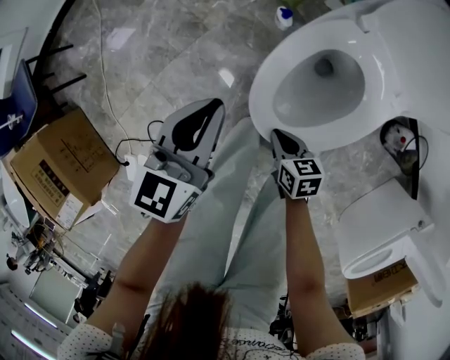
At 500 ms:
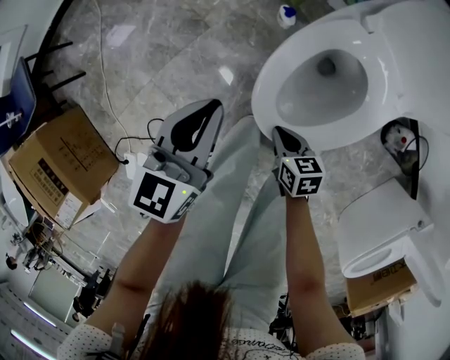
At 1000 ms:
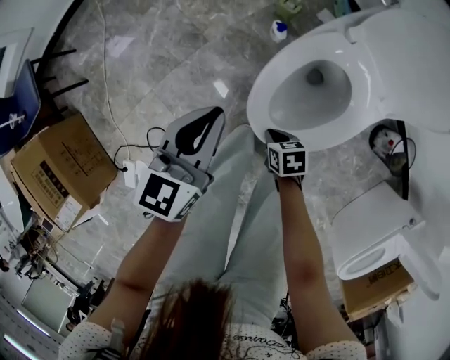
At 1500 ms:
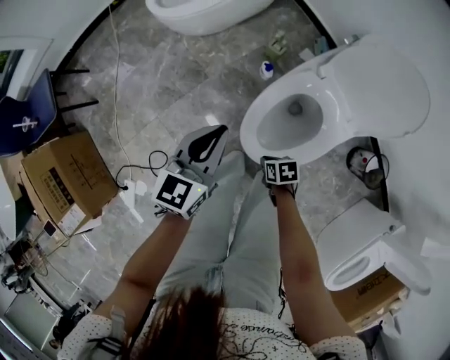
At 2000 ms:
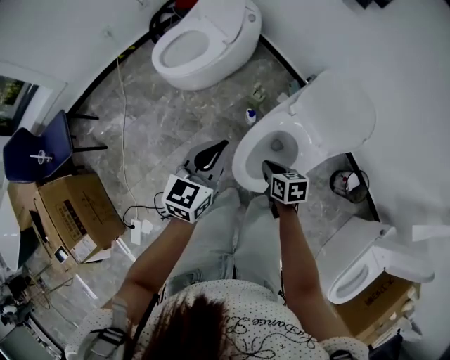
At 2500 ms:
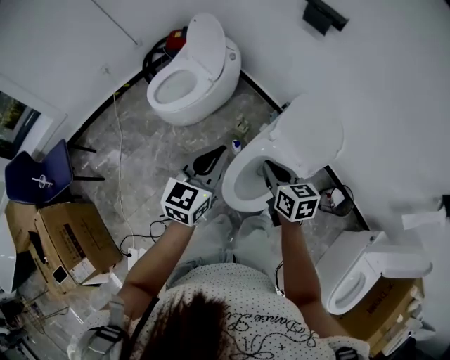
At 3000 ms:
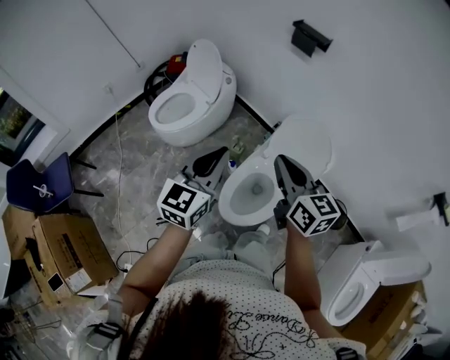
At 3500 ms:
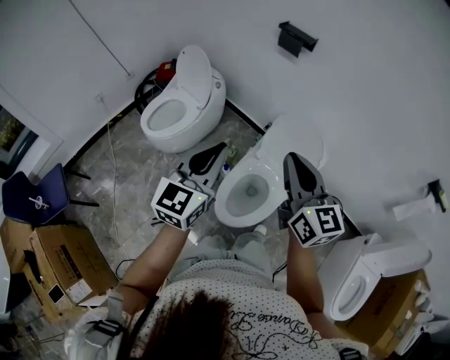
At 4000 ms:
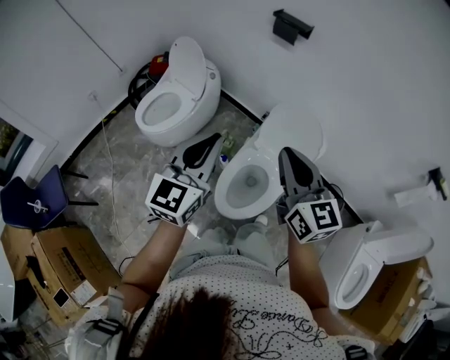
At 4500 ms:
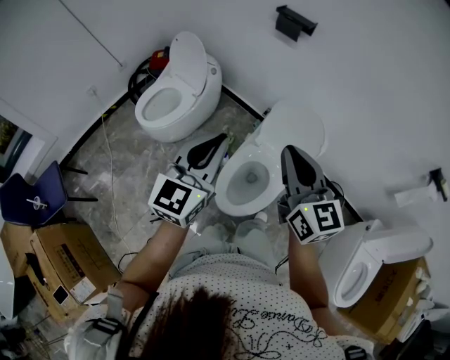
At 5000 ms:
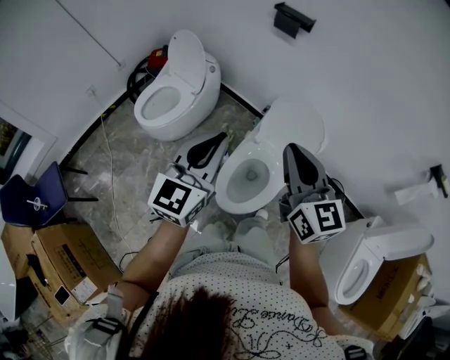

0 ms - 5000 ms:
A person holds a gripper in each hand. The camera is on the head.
0 ms - 2500 ms: The two grippers go some 40 cm upward. The right gripper turns by some 30 degrees.
2500 ms - 5000 ms: The right gripper moves upward, approximately 20 cm, and turns by roughly 40 degrees. The left gripper moves upward, roughly 10 cm.

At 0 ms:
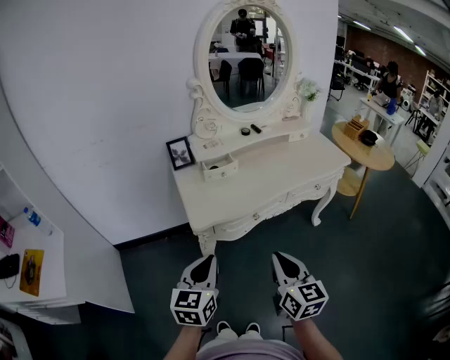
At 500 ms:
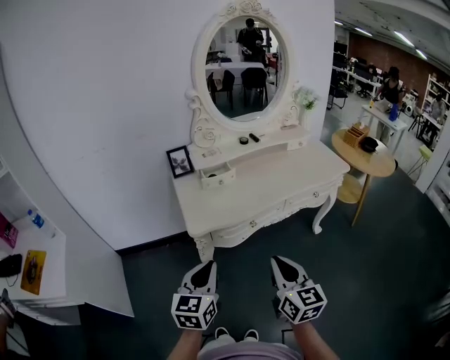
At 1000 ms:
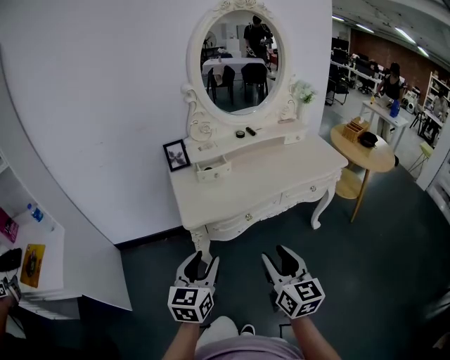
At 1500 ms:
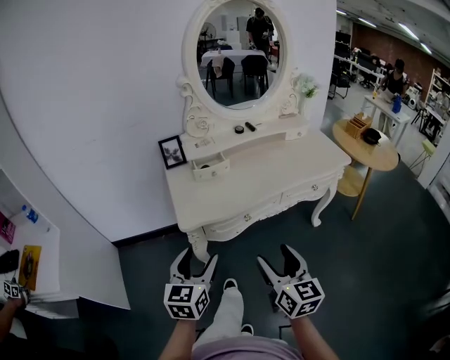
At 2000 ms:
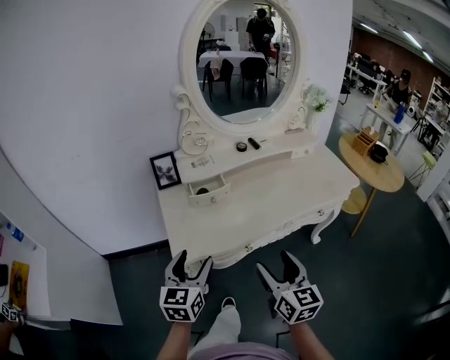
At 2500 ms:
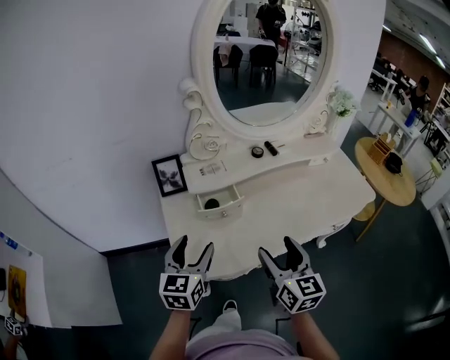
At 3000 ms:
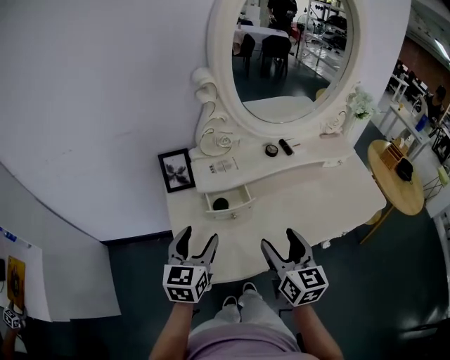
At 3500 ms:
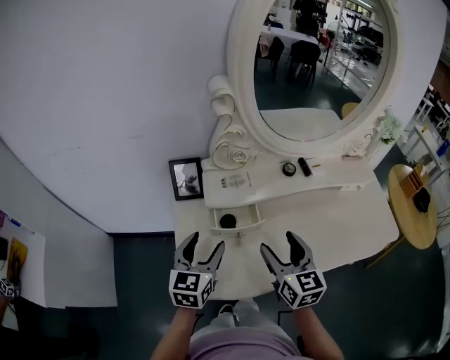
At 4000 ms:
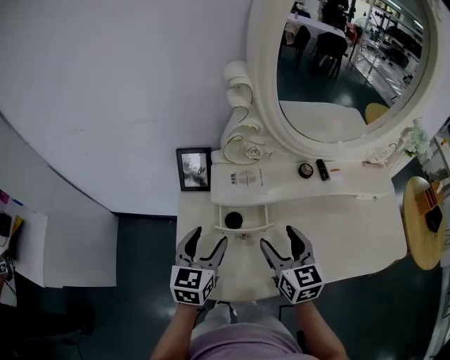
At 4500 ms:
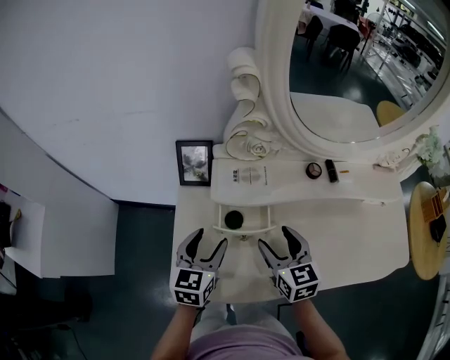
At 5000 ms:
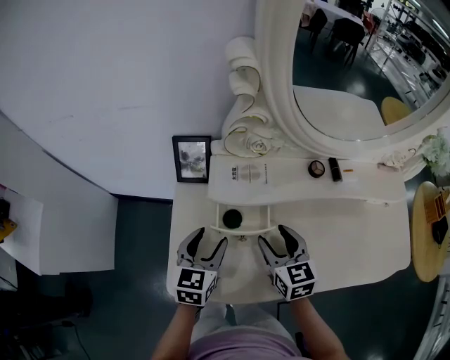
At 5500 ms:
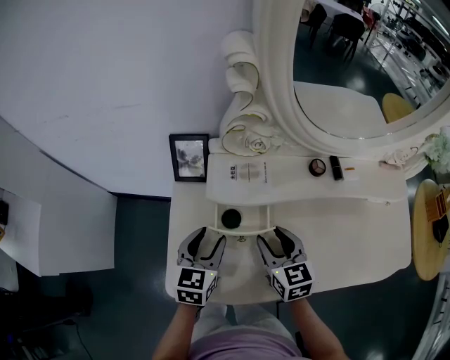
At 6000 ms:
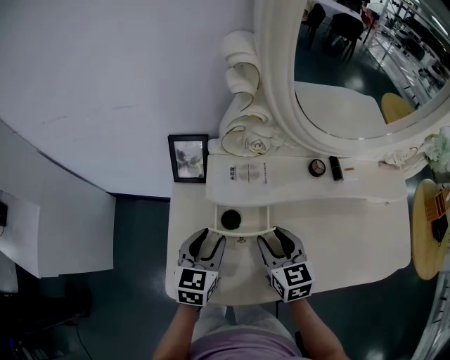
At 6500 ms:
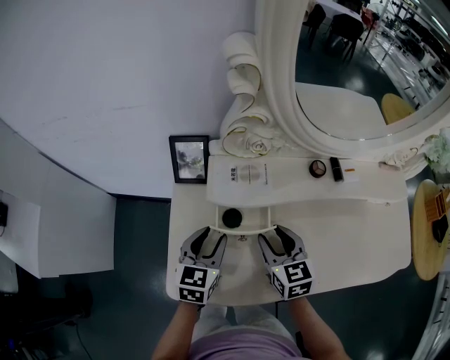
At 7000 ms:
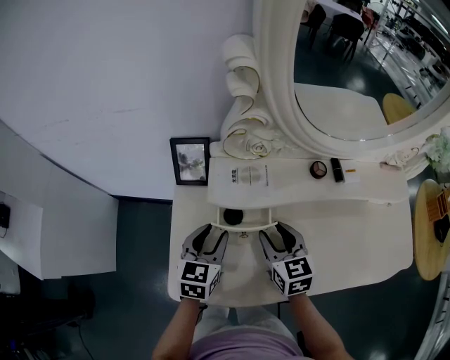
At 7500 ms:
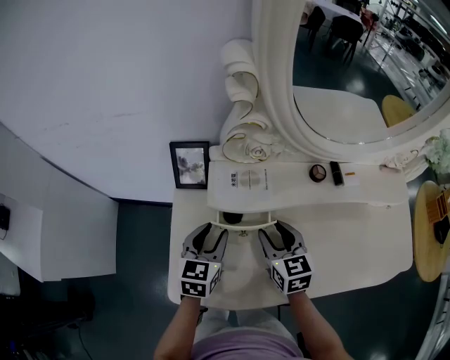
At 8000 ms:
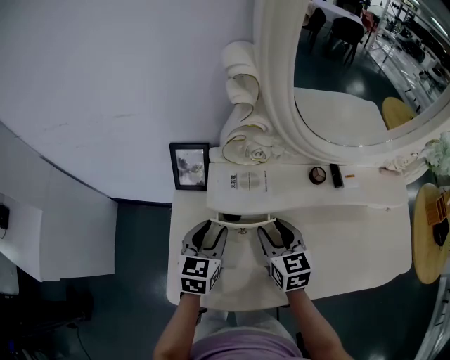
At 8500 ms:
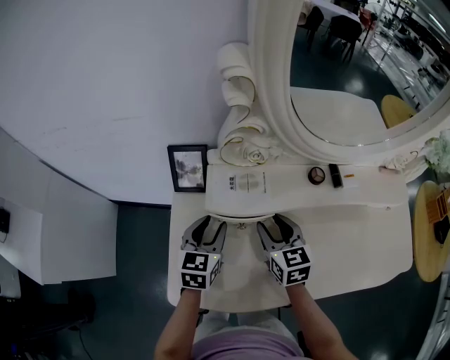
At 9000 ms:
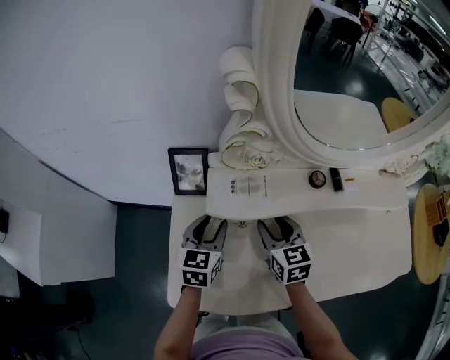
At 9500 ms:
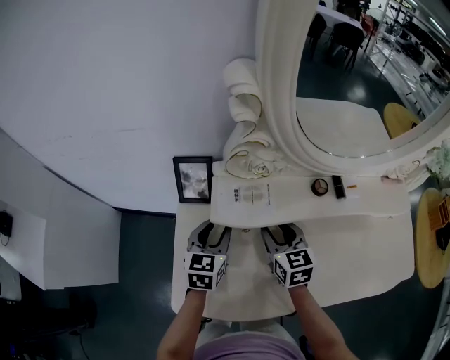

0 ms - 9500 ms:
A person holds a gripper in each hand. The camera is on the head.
0 ms - 2000 ms: The grippers both shift forward by approximately 15 cm. The right gripper opens its fingers; the left gripper opens up.
2000 ms - 4000 ms: Both grippers travel together forward, about 30 cm. The right gripper swivels about 30 degrees.
4000 ms - 5500 ms: Both grippers move downward, roughly 5 cm. The right gripper closes up.
5500 ms - 7500 ms: There are only small adjustments of the grippers.
7500 ms - 9500 ms: The grippers both shift forward by some 5 cm.

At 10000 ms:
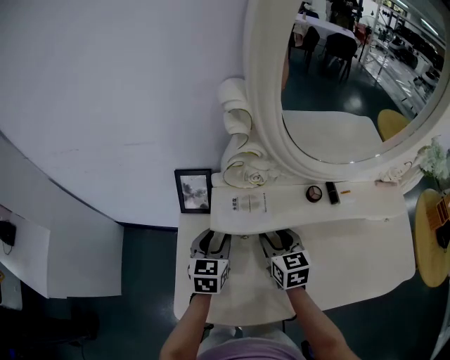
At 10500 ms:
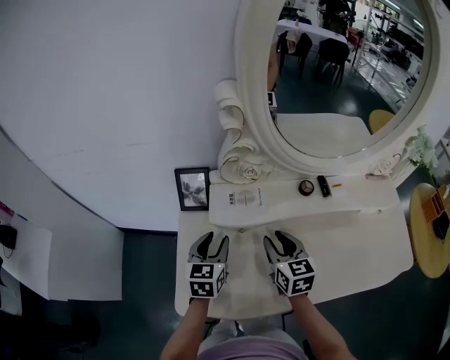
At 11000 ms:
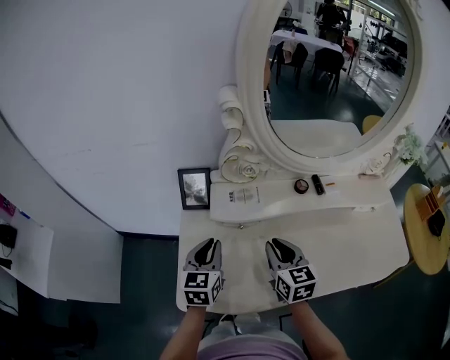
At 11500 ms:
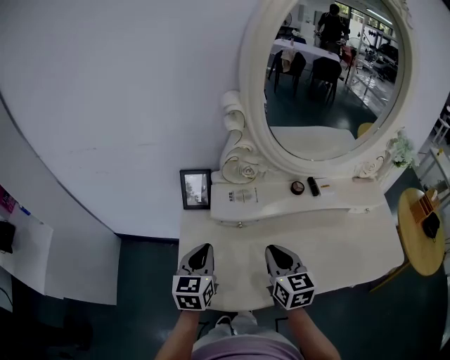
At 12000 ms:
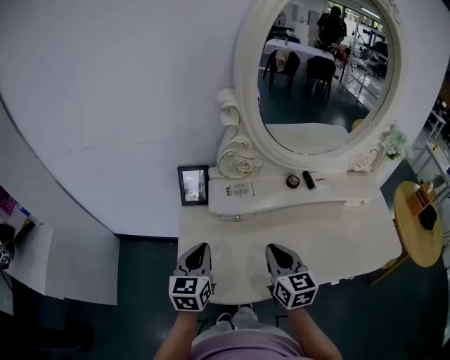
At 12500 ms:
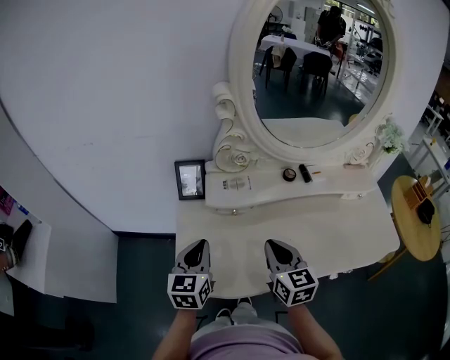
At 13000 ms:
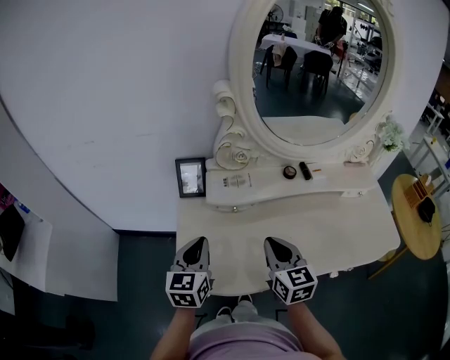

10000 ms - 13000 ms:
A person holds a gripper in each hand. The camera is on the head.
10000 ms - 11500 ms: Both grippers move backward and upward, roughly 15 cm. The left gripper closes up. The right gripper closes its fingers.
11500 ms - 13000 ms: The grippers make only small movements.

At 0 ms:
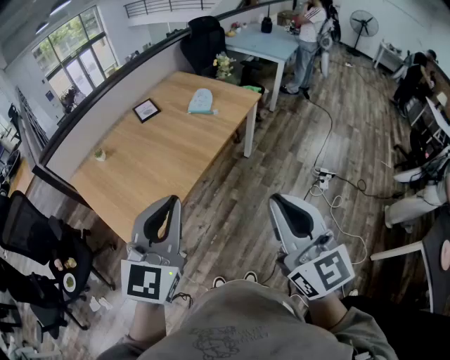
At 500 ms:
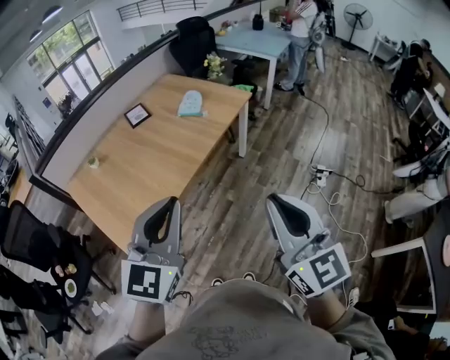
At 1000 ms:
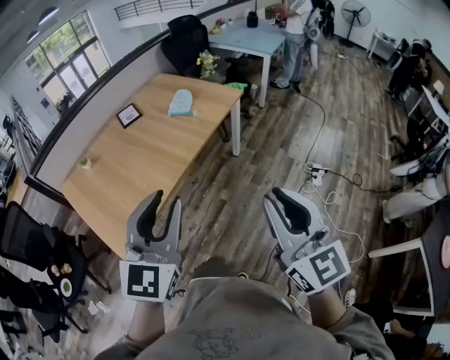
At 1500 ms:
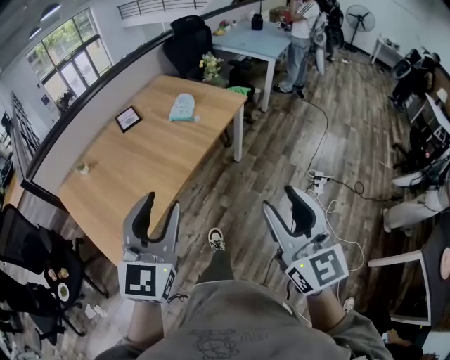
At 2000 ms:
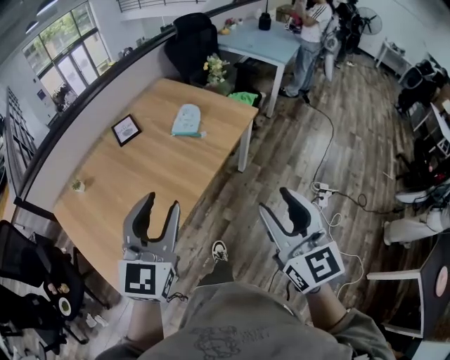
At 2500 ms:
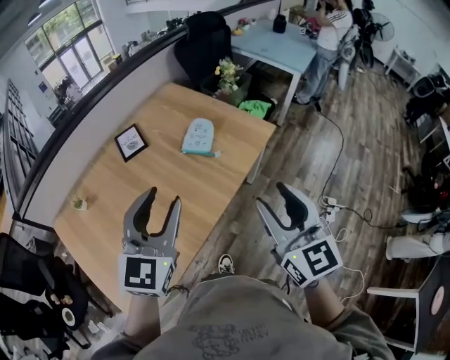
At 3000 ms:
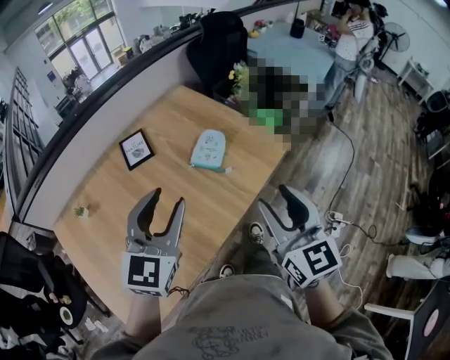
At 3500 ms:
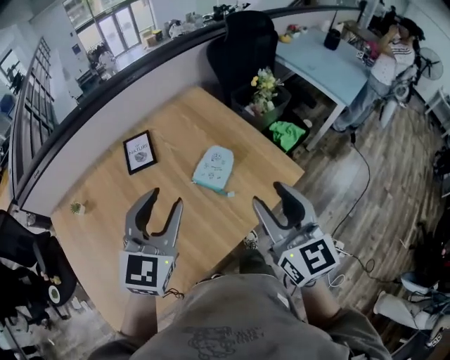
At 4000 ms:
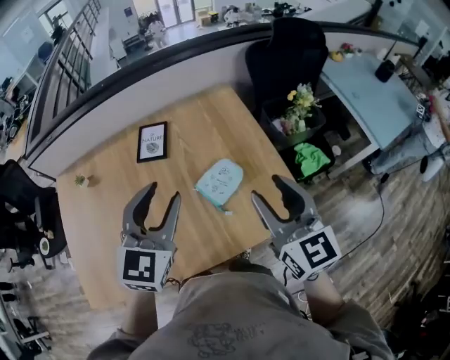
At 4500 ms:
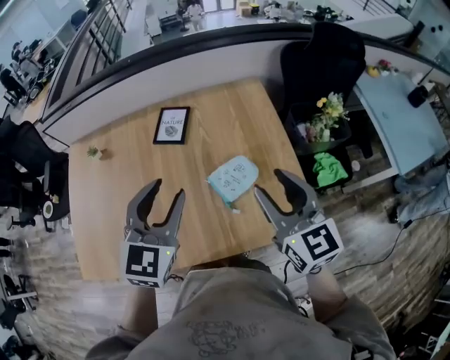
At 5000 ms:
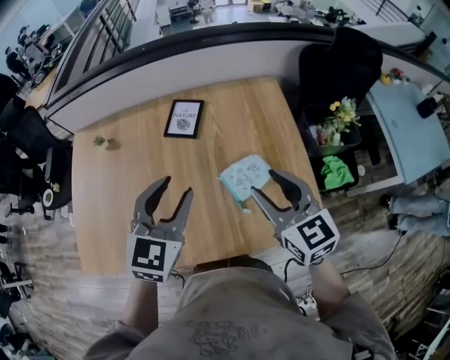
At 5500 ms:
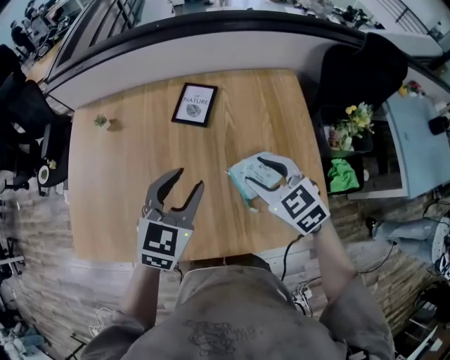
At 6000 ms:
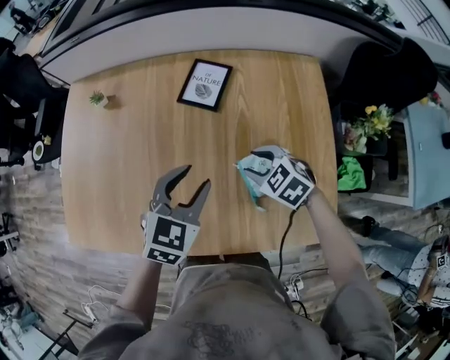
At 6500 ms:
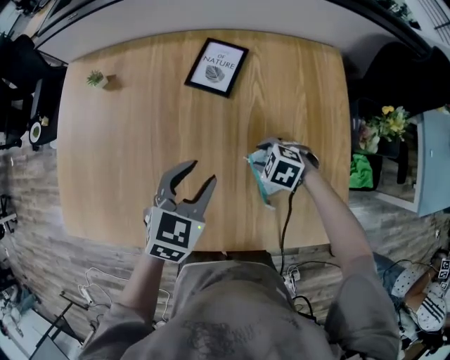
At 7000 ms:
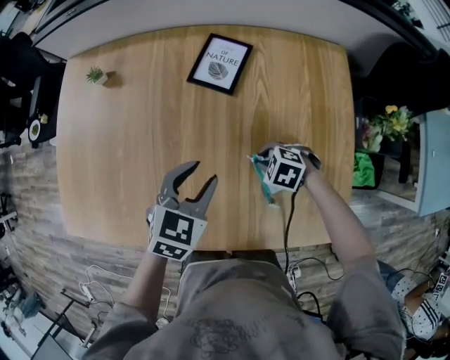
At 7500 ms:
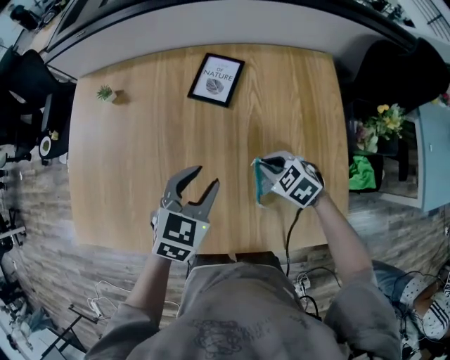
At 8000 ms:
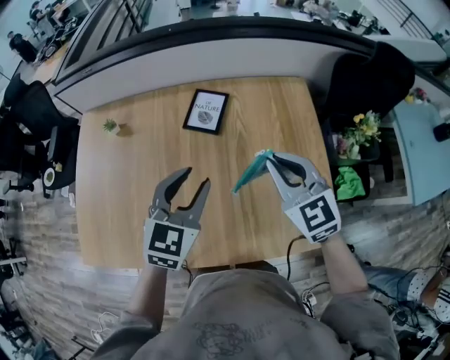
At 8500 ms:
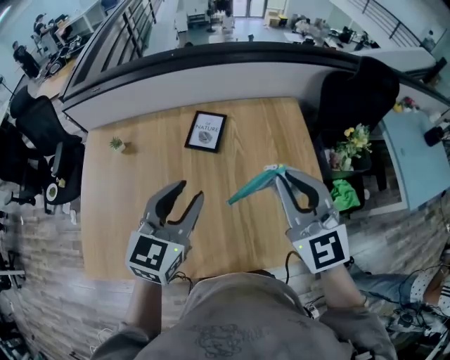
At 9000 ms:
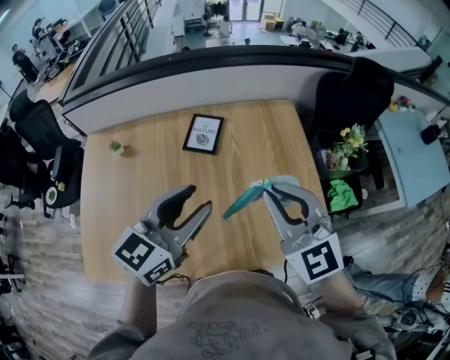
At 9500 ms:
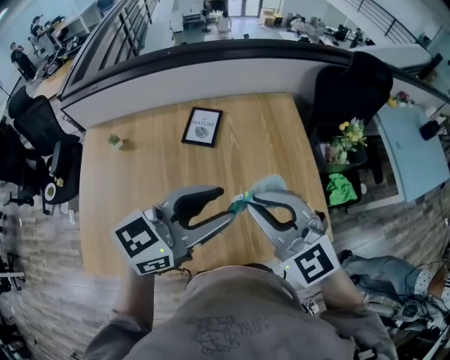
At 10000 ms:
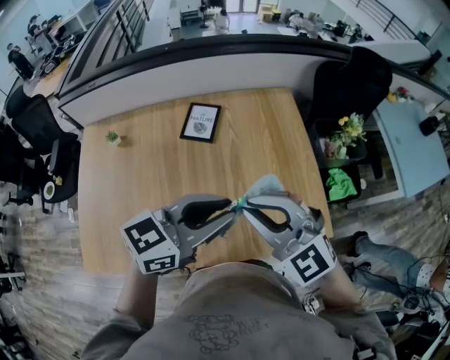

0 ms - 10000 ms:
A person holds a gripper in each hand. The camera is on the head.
0 ms - 2000 ms: Both grippers move forward, approximately 25 cm. The left gripper opens its fingers, while the right gripper opens.
2000 ms - 4000 ms: Both grippers are carried approximately 50 cm. The right gripper rotates about 40 degrees; the left gripper changes its angle by about 30 degrees.
4000 ms - 6000 ms: The right gripper travels downward by some 30 cm, and tips its fingers downward by approximately 50 degrees. The left gripper is displaced downward by approximately 20 cm, and changes its angle by some 20 degrees.
6000 ms - 8000 ms: The right gripper goes about 20 cm upward, angles its fingers upward, by about 30 degrees, and closes up, while the left gripper shifts approximately 10 cm upward.
8000 ms - 10000 ms: The right gripper travels backward and upward by approximately 15 cm, and swivels about 20 degrees. Meanwhile the left gripper moves backward, upward and to the right, approximately 15 cm, and turns by approximately 50 degrees.
